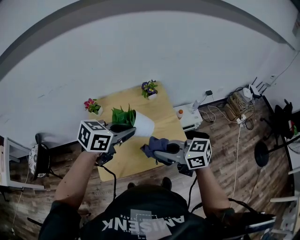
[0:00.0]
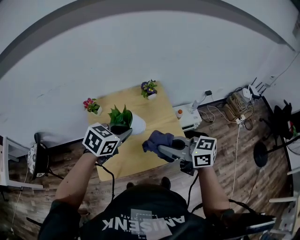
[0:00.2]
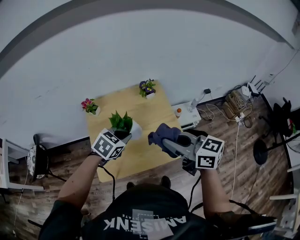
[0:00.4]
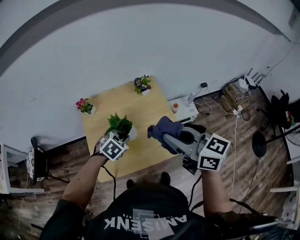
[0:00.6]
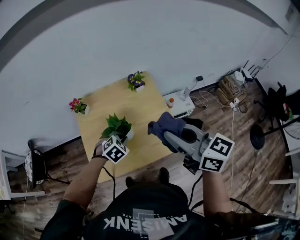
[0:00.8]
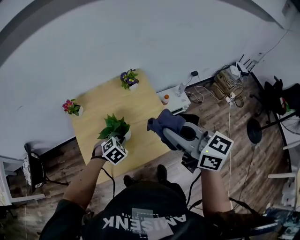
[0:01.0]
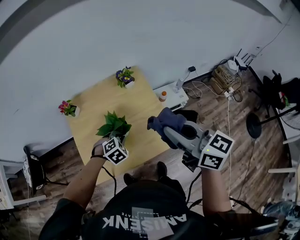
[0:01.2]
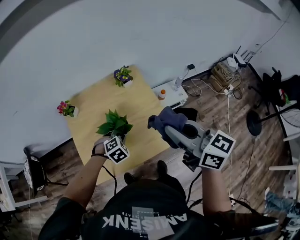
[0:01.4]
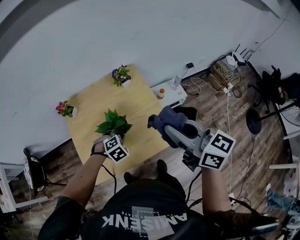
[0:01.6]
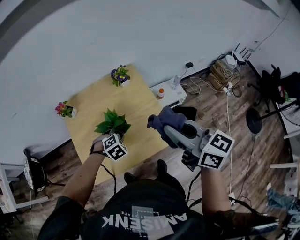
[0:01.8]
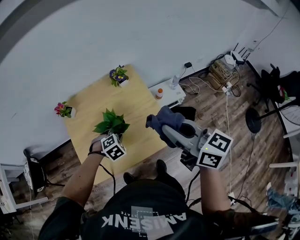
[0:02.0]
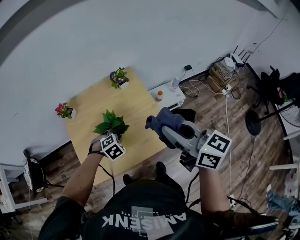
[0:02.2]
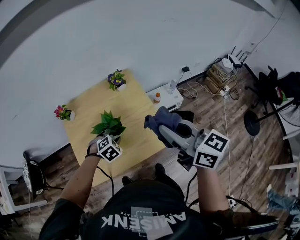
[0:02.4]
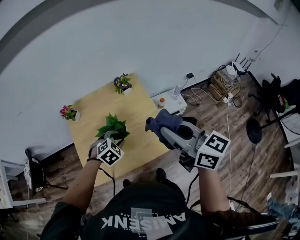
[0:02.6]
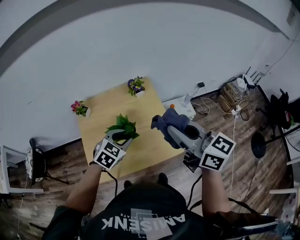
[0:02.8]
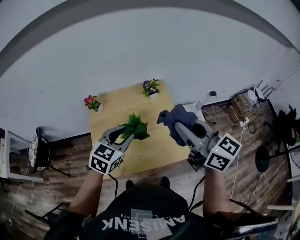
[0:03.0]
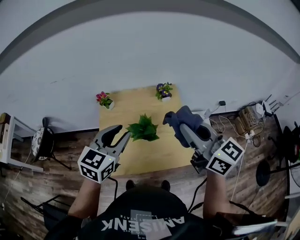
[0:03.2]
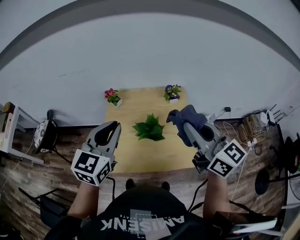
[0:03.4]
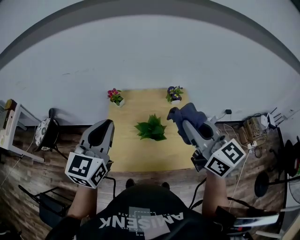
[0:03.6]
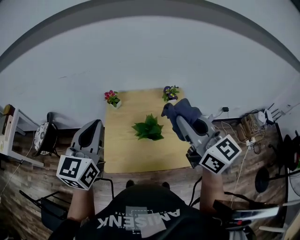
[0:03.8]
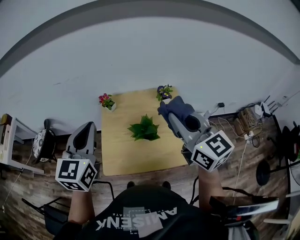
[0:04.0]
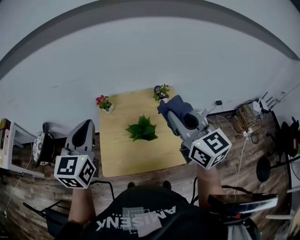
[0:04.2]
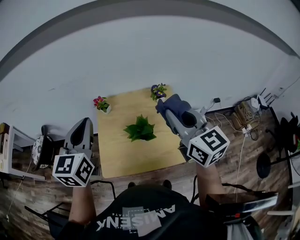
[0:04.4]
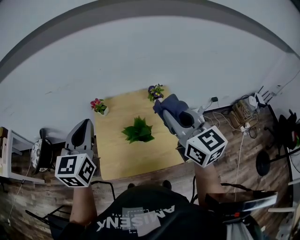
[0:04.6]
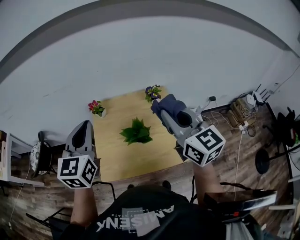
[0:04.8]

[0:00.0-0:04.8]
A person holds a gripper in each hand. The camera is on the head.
0:00.0 to 0:01.6: The right gripper moves about 15 cm, and changes its angle by roughly 30 degrees. Meanwhile the left gripper shifts about 25 cm downward, and tilts its fingers some 40 degrees downward.
0:01.6 to 0:03.2: The right gripper goes about 10 cm upward and to the left. The left gripper shifts approximately 30 cm upward, tilts its fingers some 50 degrees upward, and opens.
0:03.2 to 0:04.8: The left gripper goes some 10 cm upward and to the left, rotates about 20 degrees, and closes its fingers.

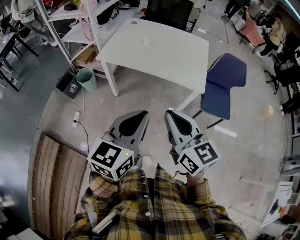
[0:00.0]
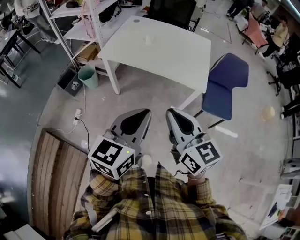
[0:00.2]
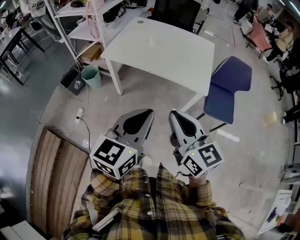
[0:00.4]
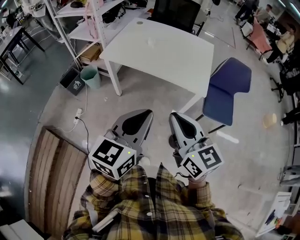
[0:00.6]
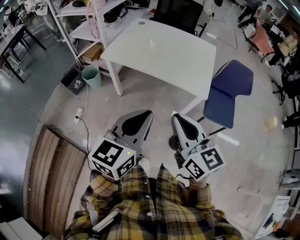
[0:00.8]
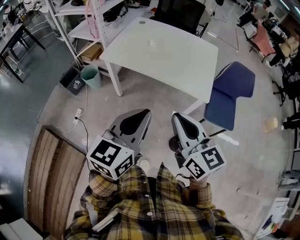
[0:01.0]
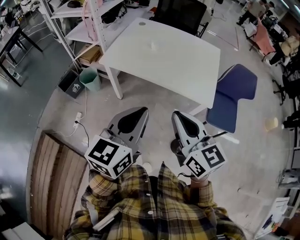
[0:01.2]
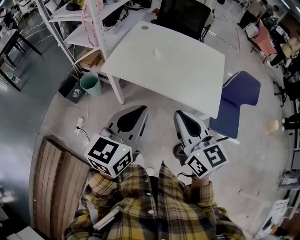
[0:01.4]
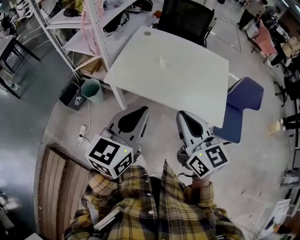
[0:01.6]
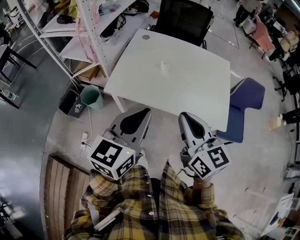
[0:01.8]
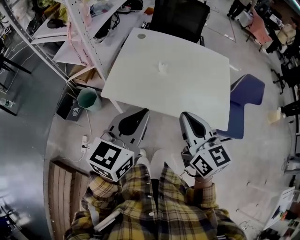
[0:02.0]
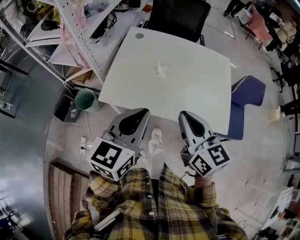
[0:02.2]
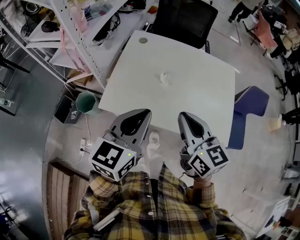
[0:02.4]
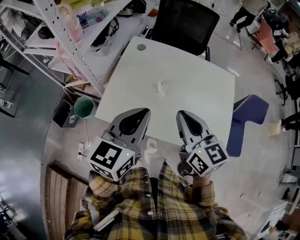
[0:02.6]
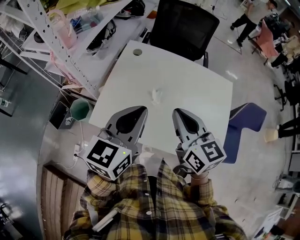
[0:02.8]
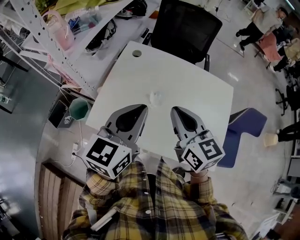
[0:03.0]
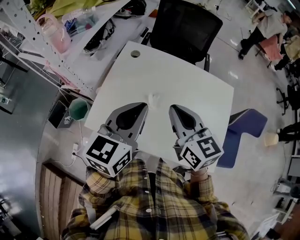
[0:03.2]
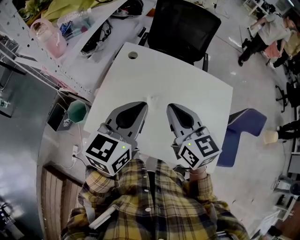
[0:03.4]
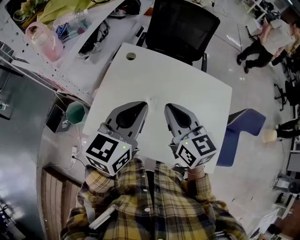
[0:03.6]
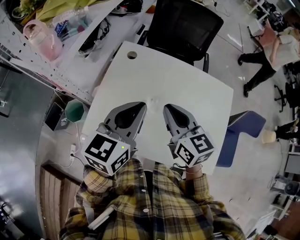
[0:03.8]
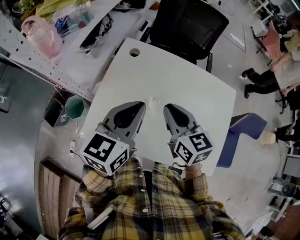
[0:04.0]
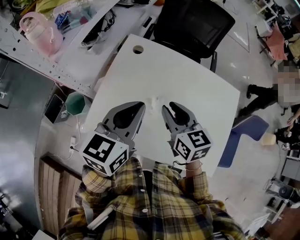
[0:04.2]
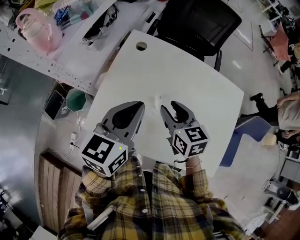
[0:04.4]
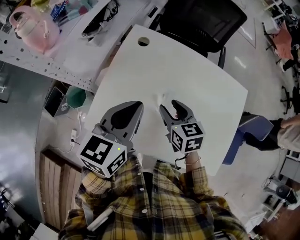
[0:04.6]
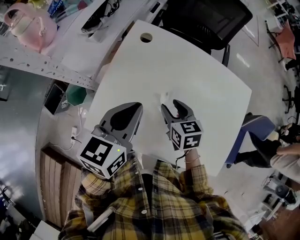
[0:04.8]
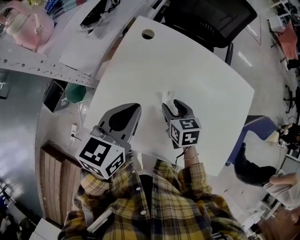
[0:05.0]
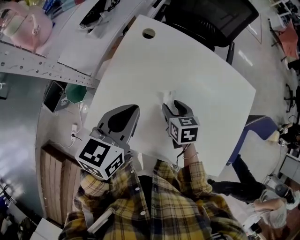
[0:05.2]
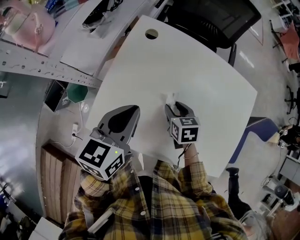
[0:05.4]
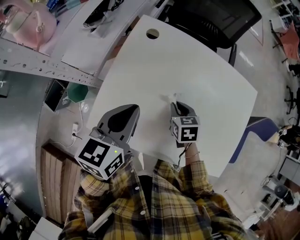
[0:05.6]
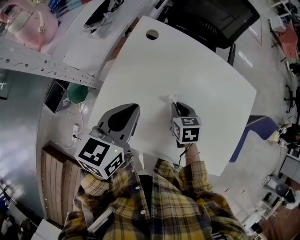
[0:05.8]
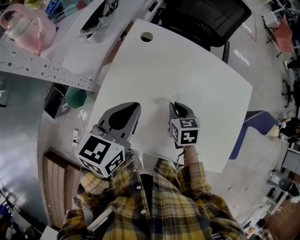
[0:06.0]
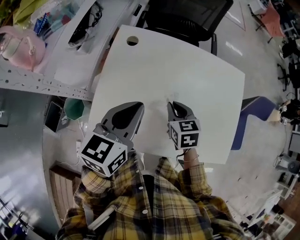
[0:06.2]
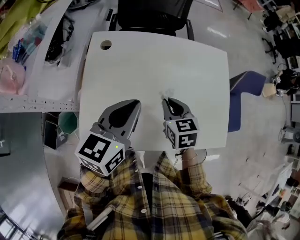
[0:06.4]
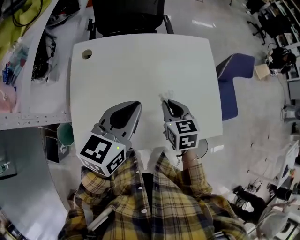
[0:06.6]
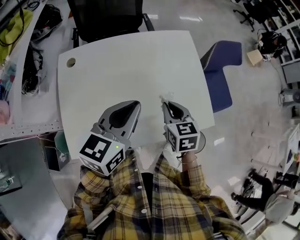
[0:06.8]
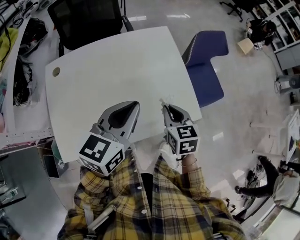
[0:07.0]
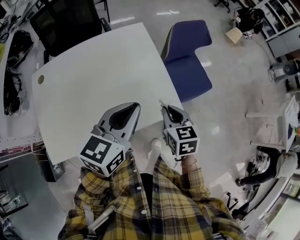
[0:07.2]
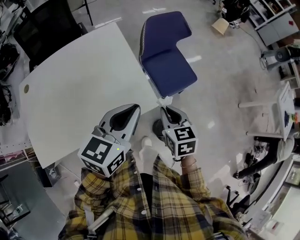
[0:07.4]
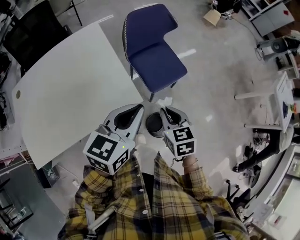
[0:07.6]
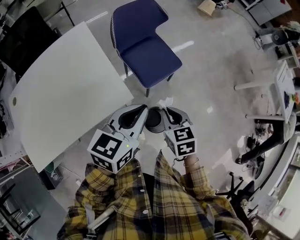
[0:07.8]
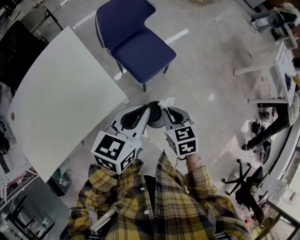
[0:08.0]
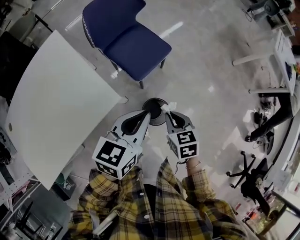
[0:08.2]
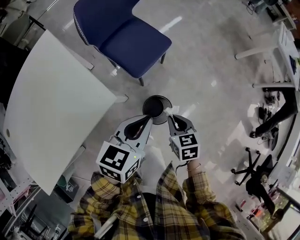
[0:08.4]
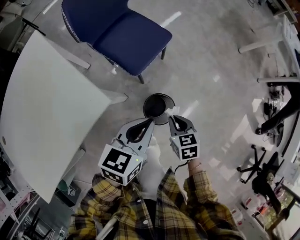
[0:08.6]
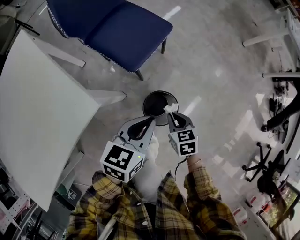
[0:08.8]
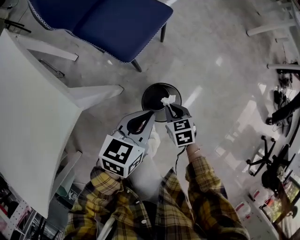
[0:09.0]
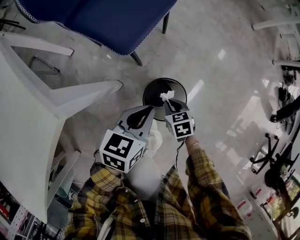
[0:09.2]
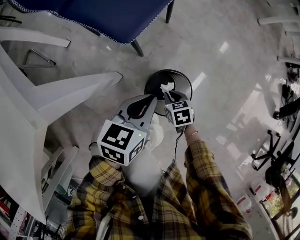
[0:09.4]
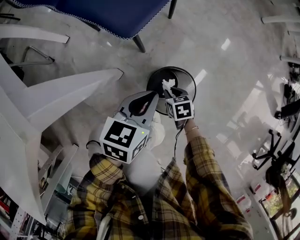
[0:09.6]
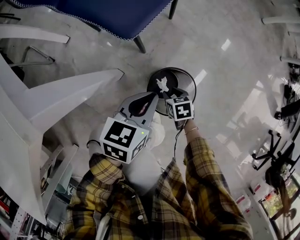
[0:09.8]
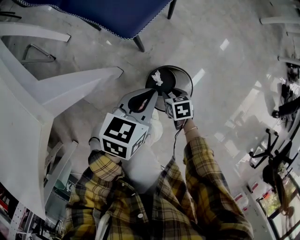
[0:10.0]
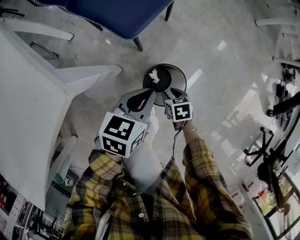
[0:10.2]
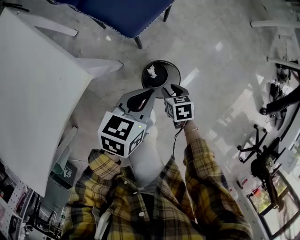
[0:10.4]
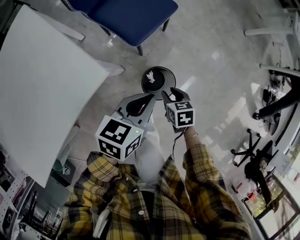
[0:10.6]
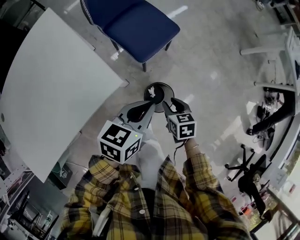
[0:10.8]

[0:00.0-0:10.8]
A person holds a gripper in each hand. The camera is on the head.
0:00.0 to 0:01.6: The two grippers go about 25 cm forward.
0:01.6 to 0:03.0: Both grippers move forward, some 30 cm.
0:03.0 to 0:04.6: The right gripper is displaced downward and forward by some 20 cm, turns by roughly 20 degrees, and opens. The left gripper is displaced forward and downward by some 15 cm.
0:04.6 to 0:06.2: The right gripper closes its fingers.
0:06.2 to 0:07.8: The pair of grippers is taken some 60 cm. The right gripper swivels approximately 40 degrees. The left gripper swivels about 50 degrees.
0:07.8 to 0:09.2: The grippers both shift downward by approximately 50 cm. The left gripper turns by roughly 30 degrees. Meanwhile the right gripper swivels roughly 30 degrees.
0:09.2 to 0:10.8: The two grippers go about 30 cm upward. The right gripper opens.

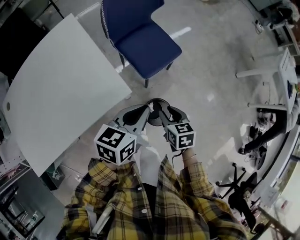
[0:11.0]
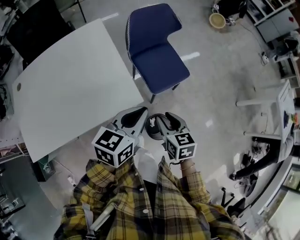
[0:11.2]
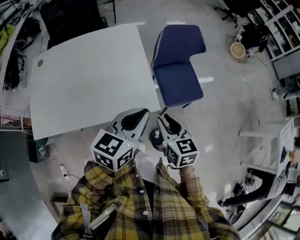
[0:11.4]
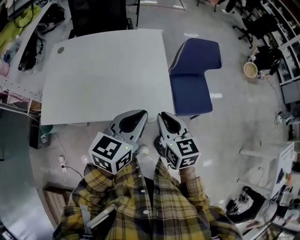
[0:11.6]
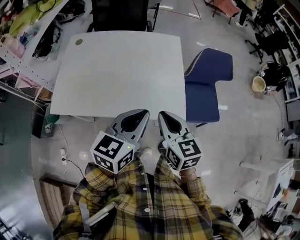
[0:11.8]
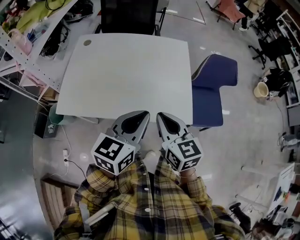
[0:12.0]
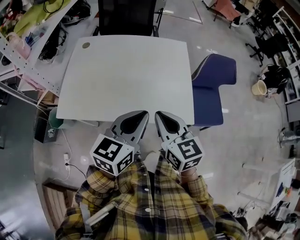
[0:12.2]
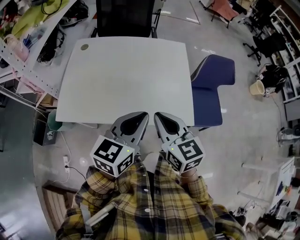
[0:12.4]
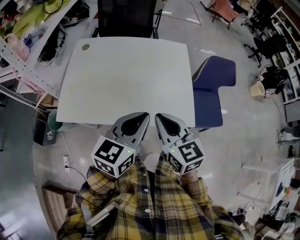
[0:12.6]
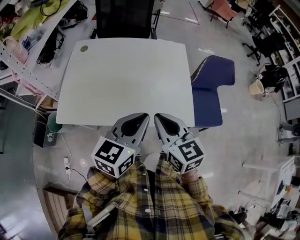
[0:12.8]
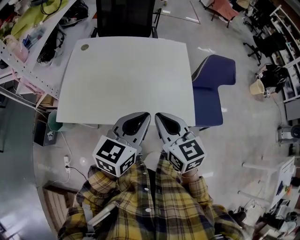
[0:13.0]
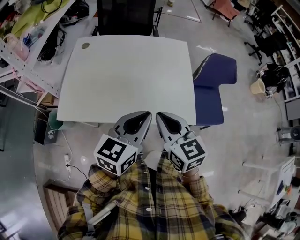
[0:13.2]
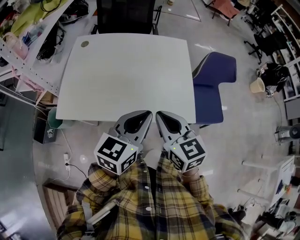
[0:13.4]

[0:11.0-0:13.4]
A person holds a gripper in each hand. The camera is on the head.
0:11.0 to 0:12.2: The right gripper shifts by approximately 50 cm, swivels some 50 degrees, and closes, while the left gripper changes place by approximately 40 cm, and rotates about 50 degrees.
0:12.2 to 0:13.4: The grippers move only a little.

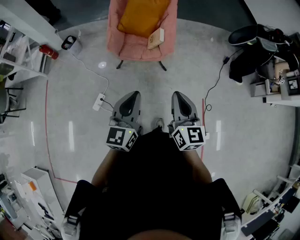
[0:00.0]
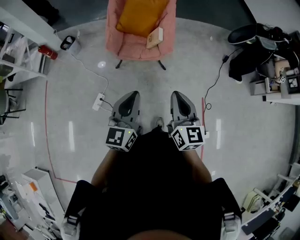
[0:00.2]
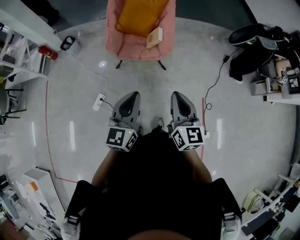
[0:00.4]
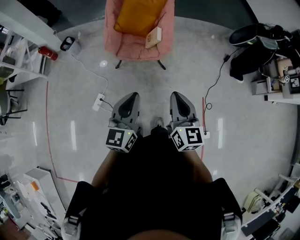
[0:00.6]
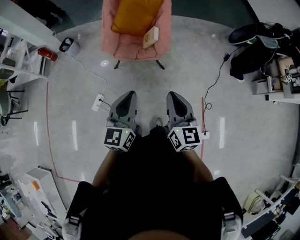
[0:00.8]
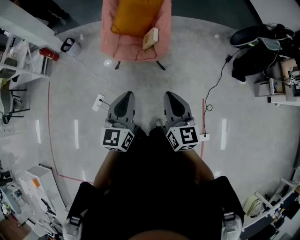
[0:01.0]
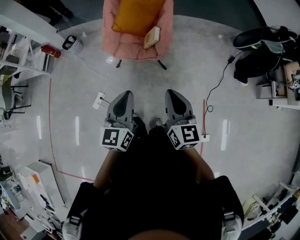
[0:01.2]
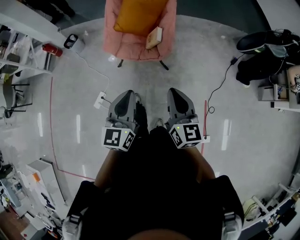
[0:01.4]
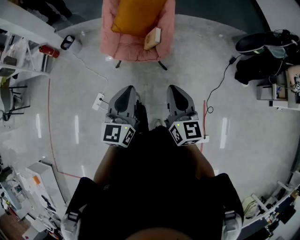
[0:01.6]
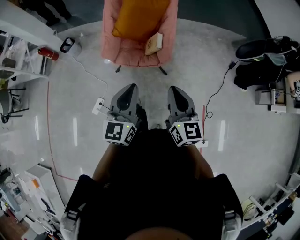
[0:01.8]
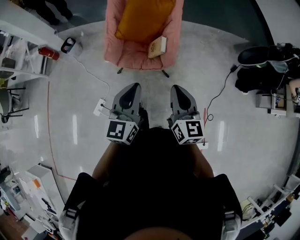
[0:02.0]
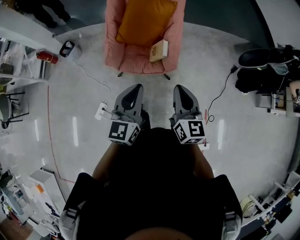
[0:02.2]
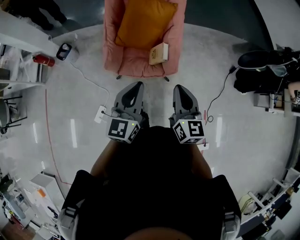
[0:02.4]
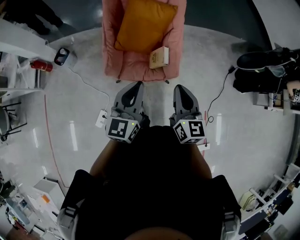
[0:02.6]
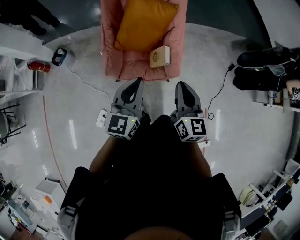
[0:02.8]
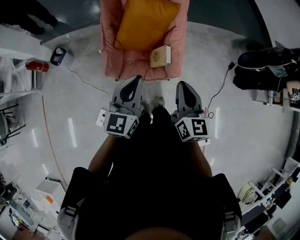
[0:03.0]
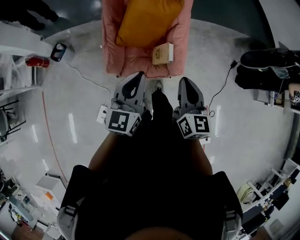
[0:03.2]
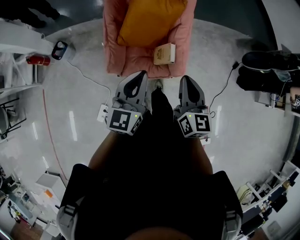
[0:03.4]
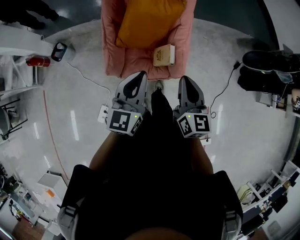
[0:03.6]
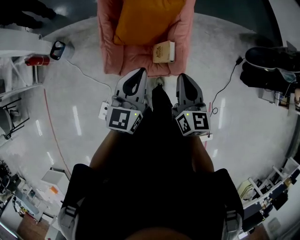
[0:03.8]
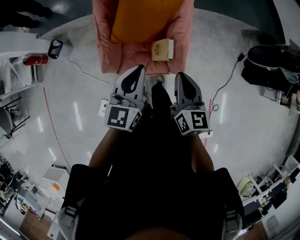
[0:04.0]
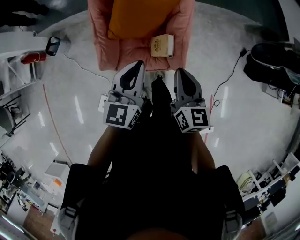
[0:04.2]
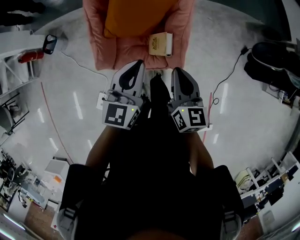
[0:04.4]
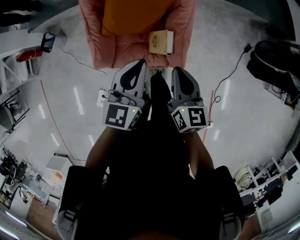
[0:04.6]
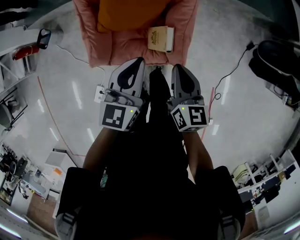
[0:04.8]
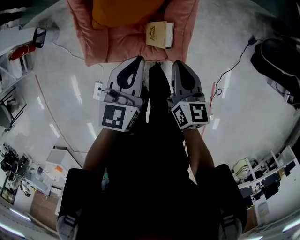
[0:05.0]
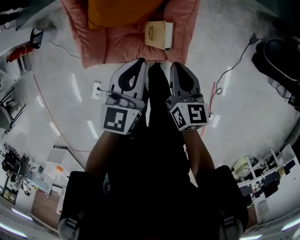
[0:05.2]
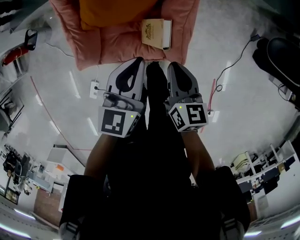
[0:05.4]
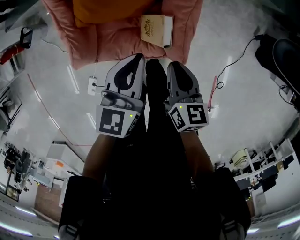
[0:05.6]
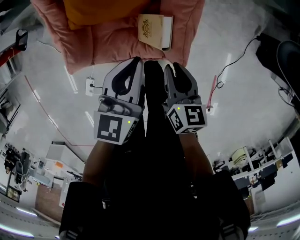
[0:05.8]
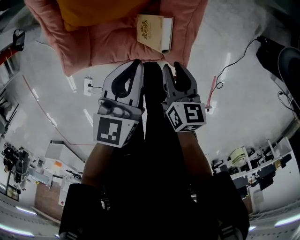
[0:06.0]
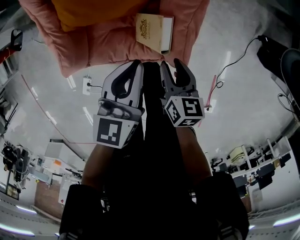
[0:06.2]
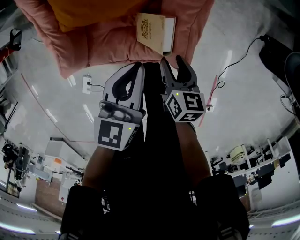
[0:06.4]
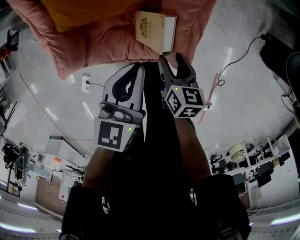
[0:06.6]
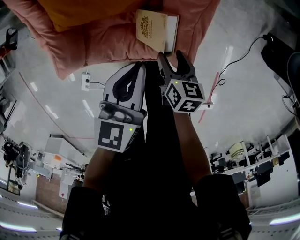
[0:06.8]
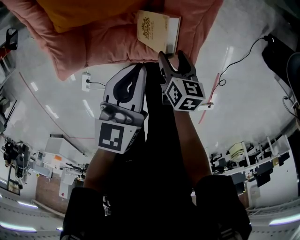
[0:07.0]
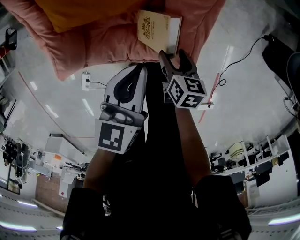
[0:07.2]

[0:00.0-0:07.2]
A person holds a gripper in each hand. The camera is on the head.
0:00.0 to 0:01.4: The right gripper moves forward and to the right, some 10 cm. Meanwhile the left gripper travels to the right and forward by approximately 10 cm.
0:01.4 to 0:02.8: The two grippers go about 35 cm forward and to the left.
0:02.8 to 0:04.4: The grippers both shift forward and downward by about 20 cm.
0:04.4 to 0:05.8: Both grippers travel together downward, about 20 cm. The right gripper rotates about 20 degrees.
0:05.8 to 0:07.2: The left gripper is displaced downward by roughly 10 cm, while the right gripper moves downward, approximately 20 cm, and opens its fingers.
